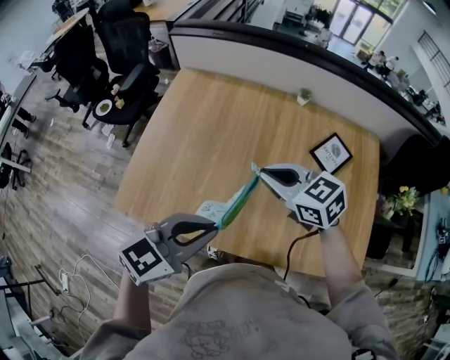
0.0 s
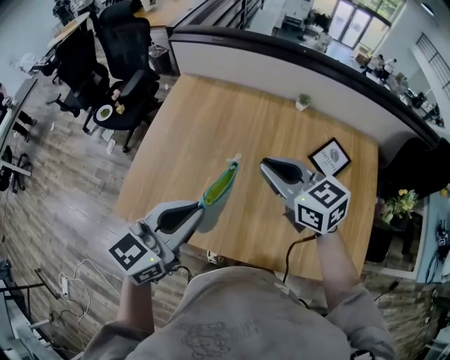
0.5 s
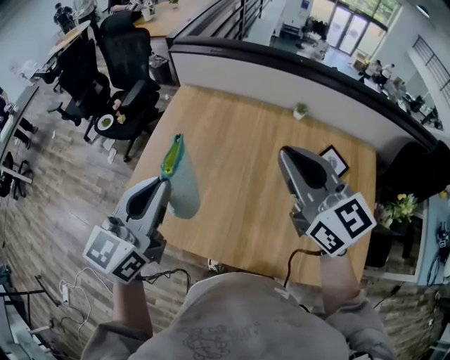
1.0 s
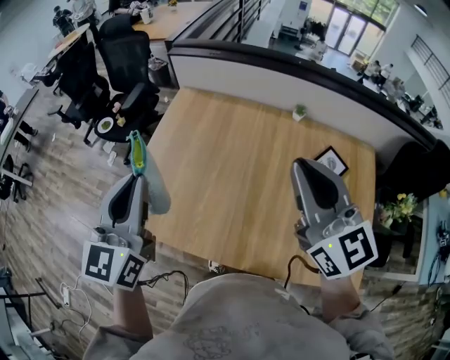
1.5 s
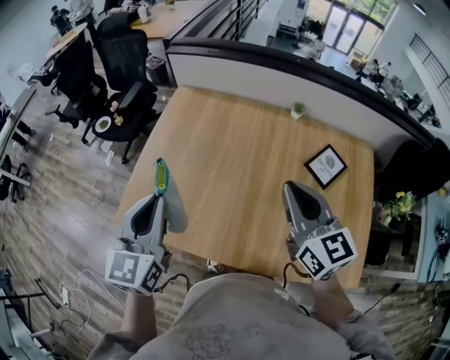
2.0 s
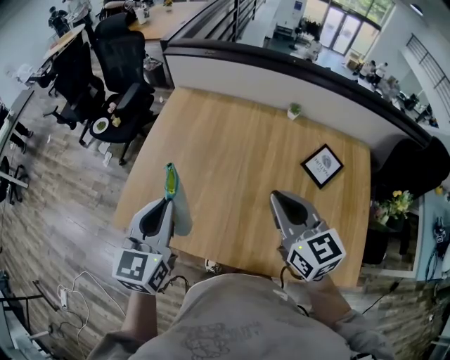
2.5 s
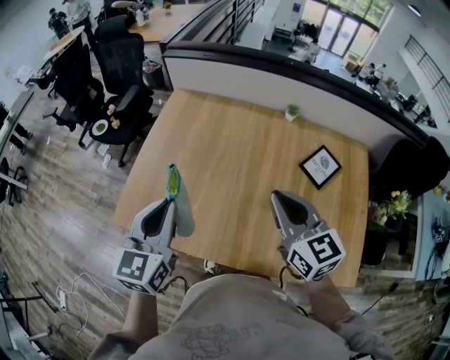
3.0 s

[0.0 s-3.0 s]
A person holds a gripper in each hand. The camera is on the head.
0.0 to 1.5 s: The right gripper goes some 20 cm upward, and tips its fingers upward by some 30 degrees; the left gripper is displaced upward, to the left and forward by about 20 cm, and swivels roughly 50 degrees.
1.5 to 3.0 s: The two grippers go roughly 10 cm downward.

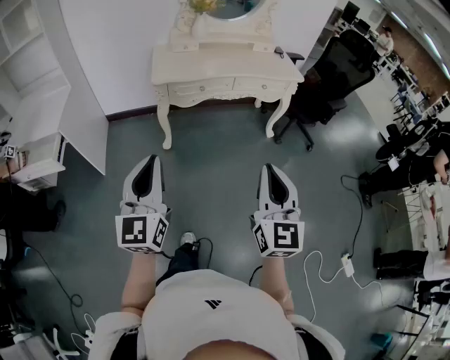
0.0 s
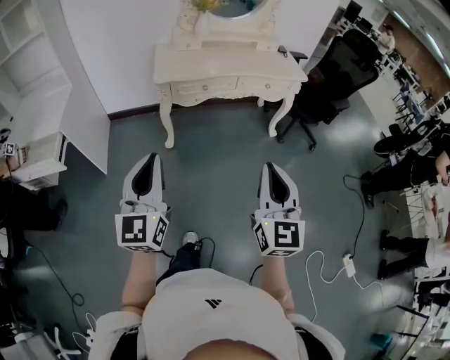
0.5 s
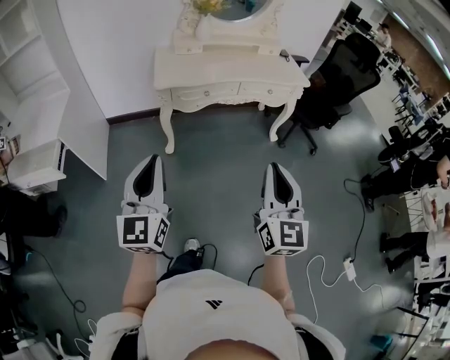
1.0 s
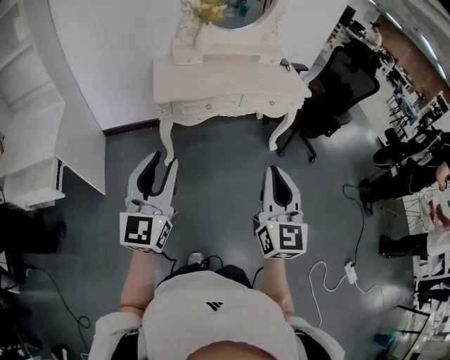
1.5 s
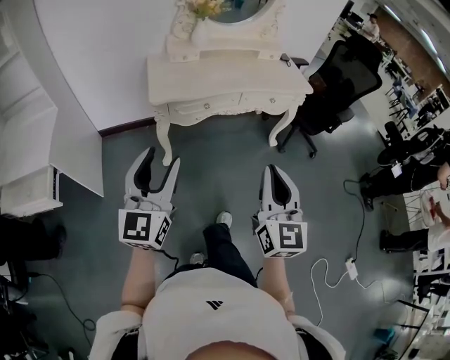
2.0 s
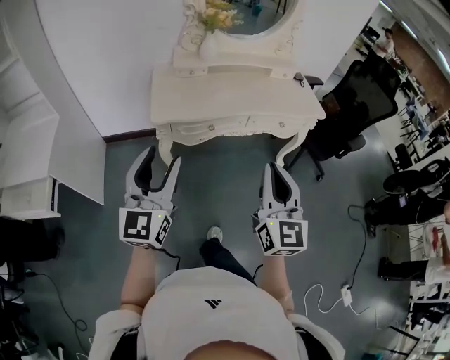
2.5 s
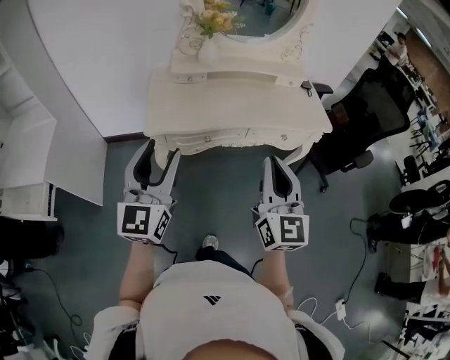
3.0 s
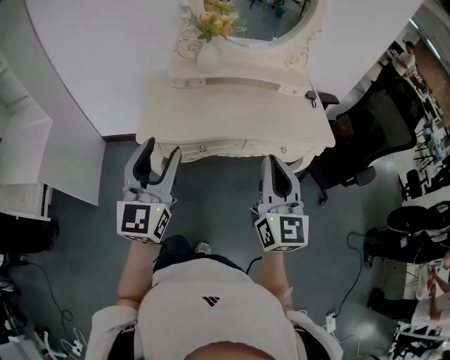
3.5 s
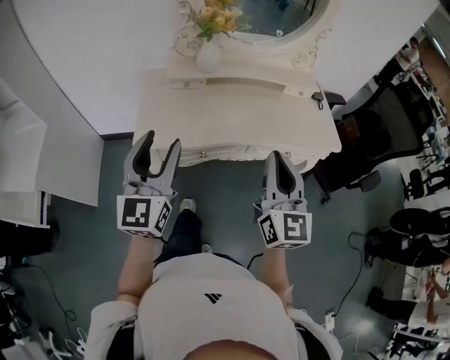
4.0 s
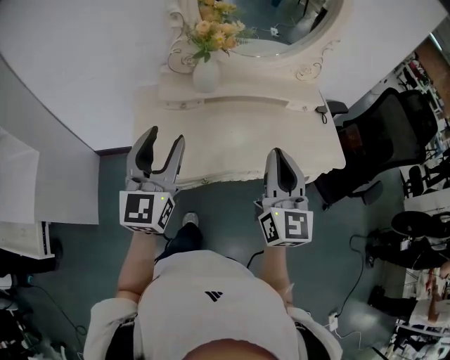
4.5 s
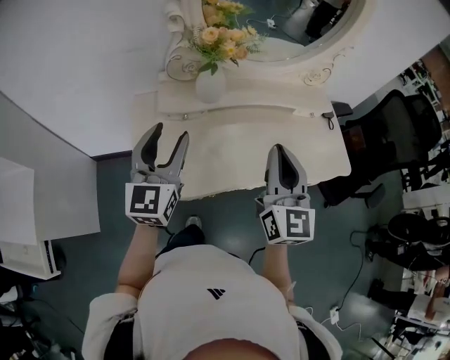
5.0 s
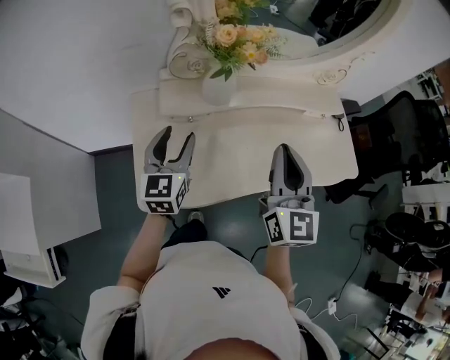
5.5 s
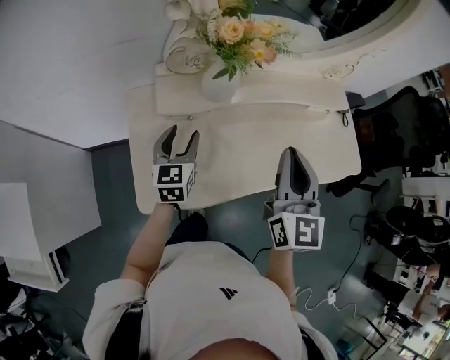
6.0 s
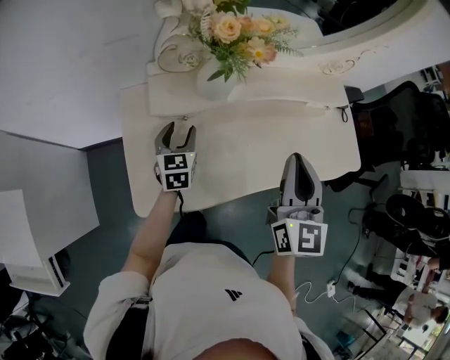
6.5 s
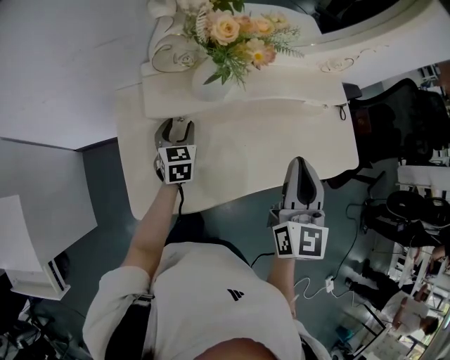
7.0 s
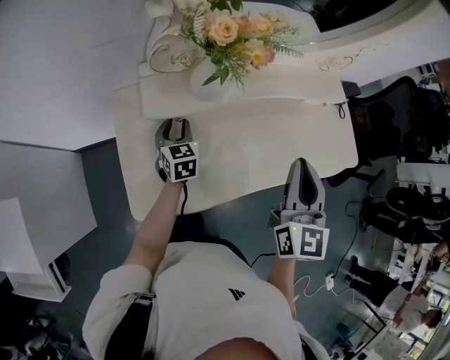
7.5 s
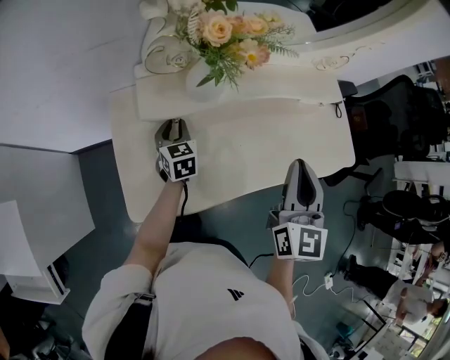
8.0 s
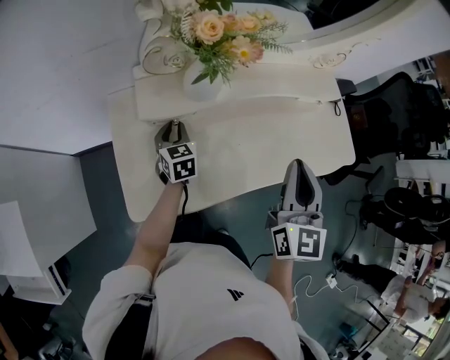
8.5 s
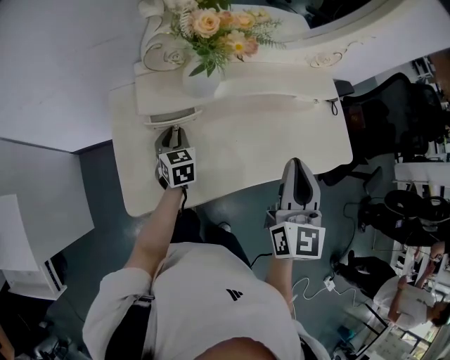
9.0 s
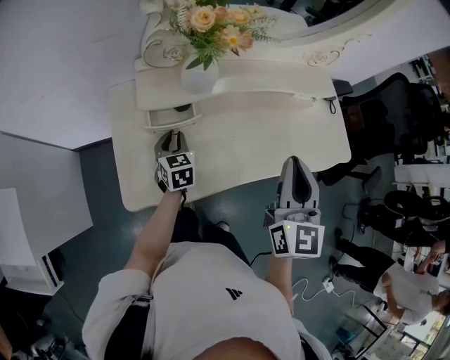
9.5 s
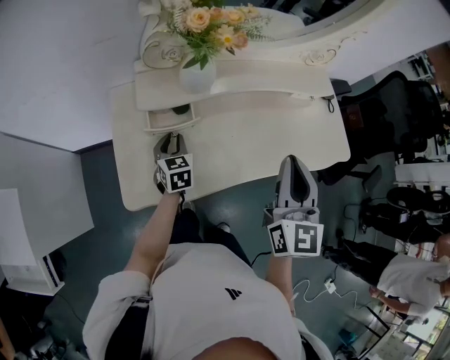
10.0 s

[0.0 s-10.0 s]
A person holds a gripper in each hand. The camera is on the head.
0.0 to 2.0 s: The right gripper goes some 20 cm forward and to the left. Meanwhile the left gripper moves forward, about 20 cm, and opens its fingers.
2.0 to 4.0 s: Both grippers travel together forward, roughly 35 cm.
4.0 to 6.0 s: The left gripper shifts approximately 40 cm forward and downward, and changes its angle by approximately 30 degrees. The right gripper is displaced forward by roughly 25 cm.
6.0 to 8.0 s: The left gripper travels downward and forward by roughly 10 cm, and closes up.
8.0 to 10.0 s: The left gripper heads backward, covering roughly 10 cm.

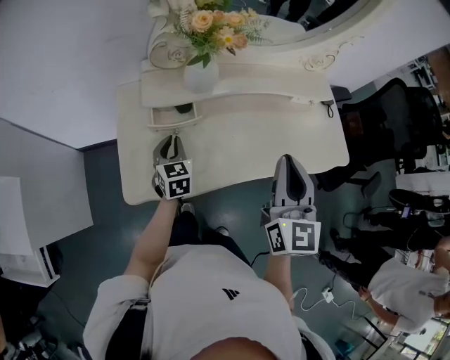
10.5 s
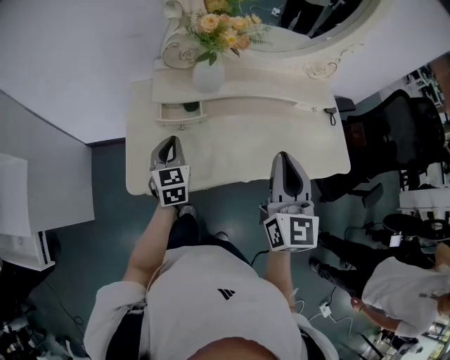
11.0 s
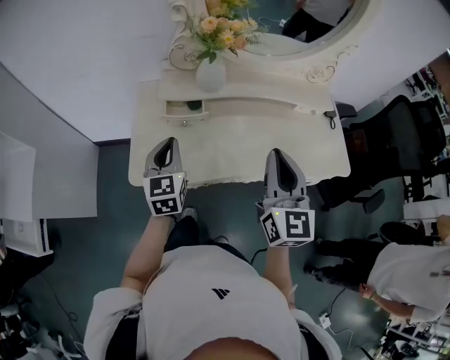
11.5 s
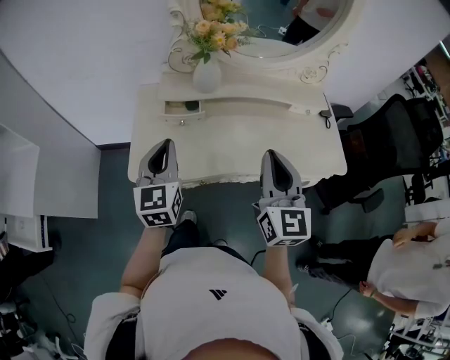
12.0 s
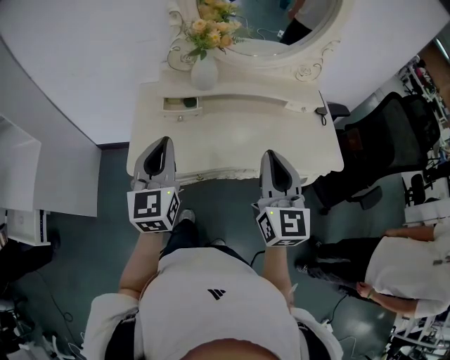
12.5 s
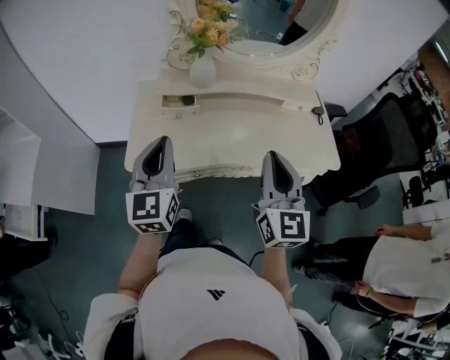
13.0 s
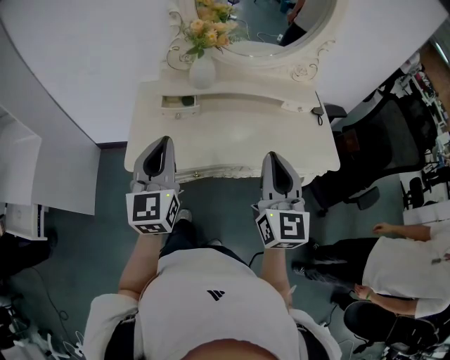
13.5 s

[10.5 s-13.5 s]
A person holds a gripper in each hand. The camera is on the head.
10.5 to 12.0 s: The left gripper goes some 25 cm upward and backward, and rotates about 20 degrees, while the right gripper travels backward by some 5 cm.
12.0 to 13.5 s: The left gripper travels backward and upward by approximately 10 cm; the right gripper goes roughly 5 cm backward.

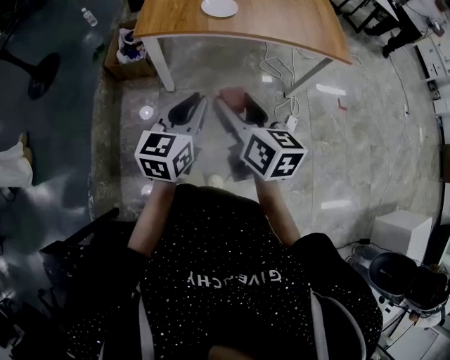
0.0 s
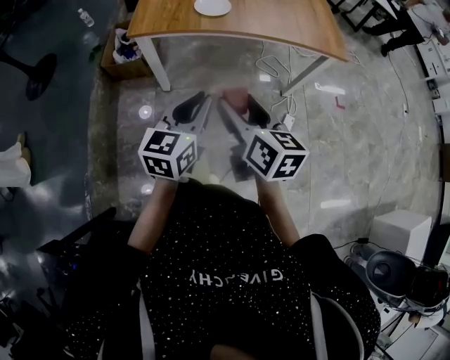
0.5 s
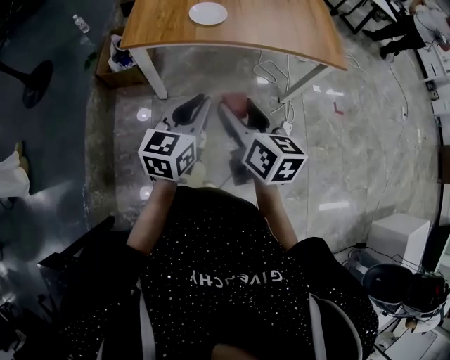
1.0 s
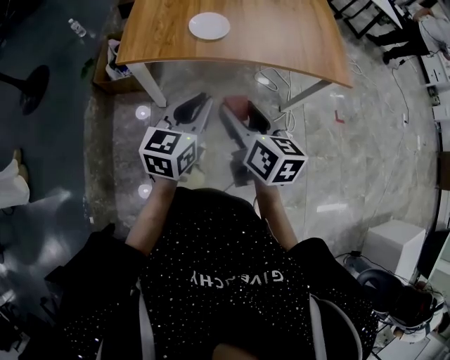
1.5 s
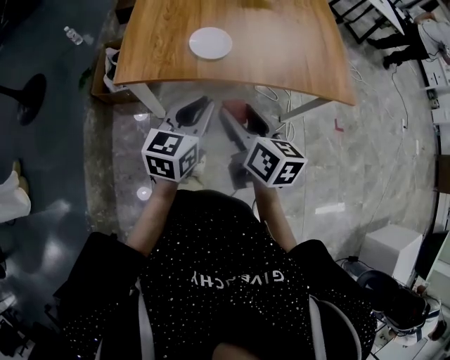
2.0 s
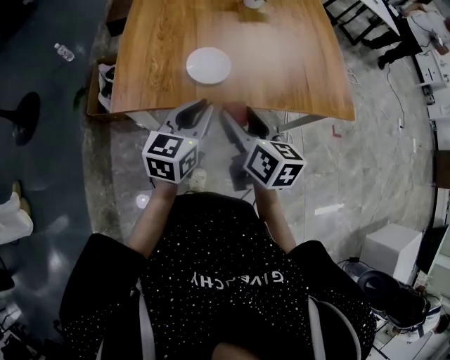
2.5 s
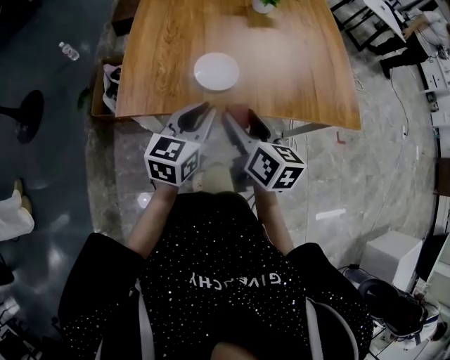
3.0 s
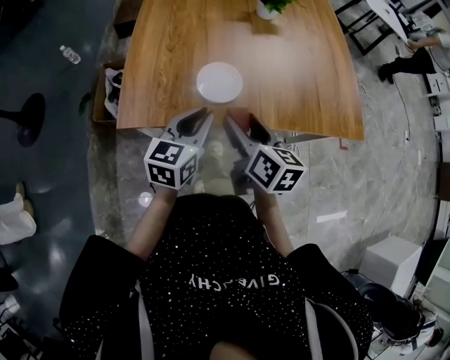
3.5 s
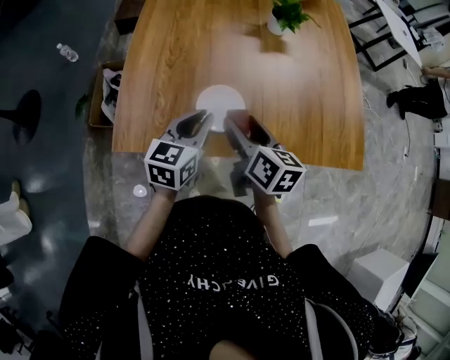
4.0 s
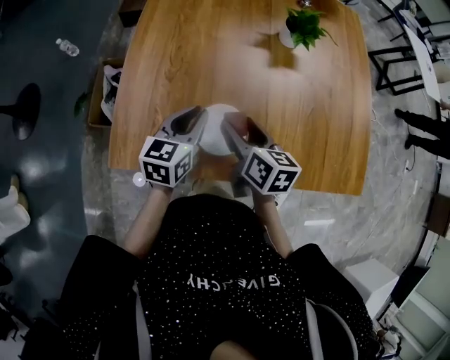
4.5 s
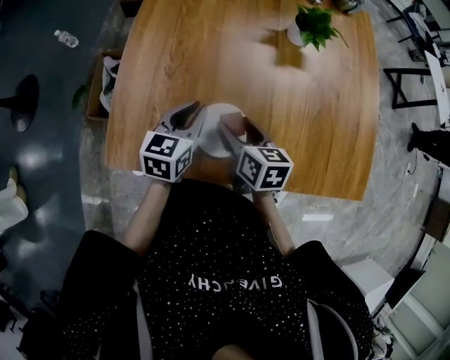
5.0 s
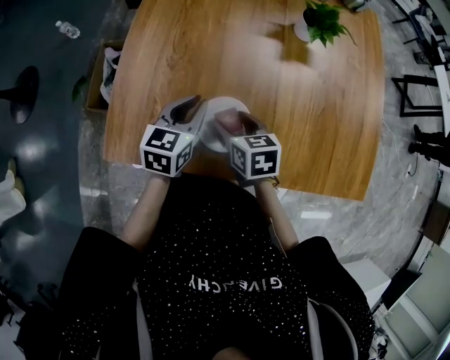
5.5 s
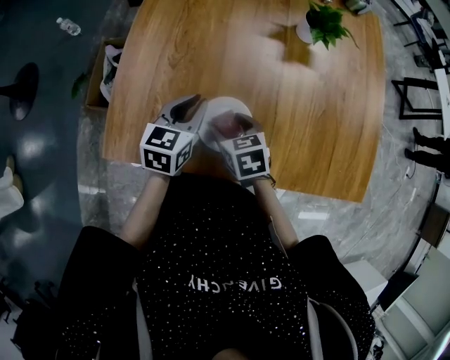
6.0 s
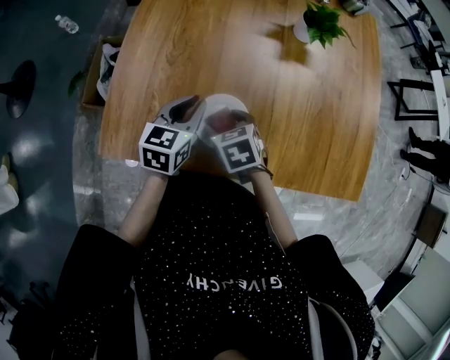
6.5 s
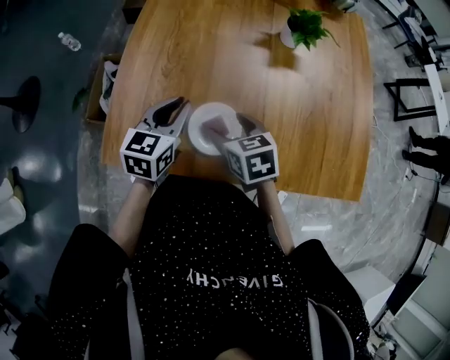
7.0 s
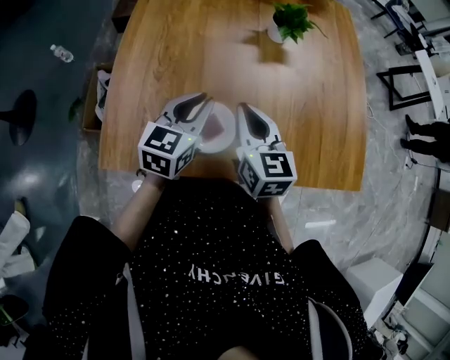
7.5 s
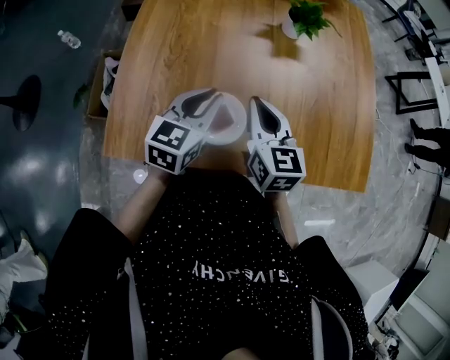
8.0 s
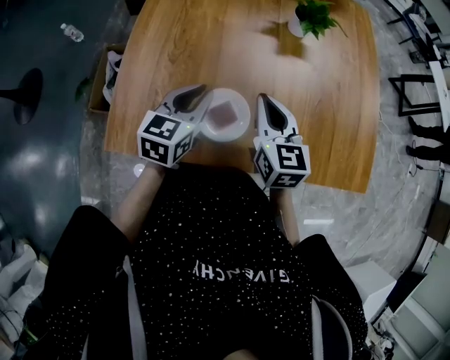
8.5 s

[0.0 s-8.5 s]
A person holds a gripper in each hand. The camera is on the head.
0.0 to 2.0 s: Both grippers move forward, roughly 25 cm.
2.0 to 4.0 s: The two grippers go some 25 cm forward.
4.0 to 6.5 s: The left gripper moves forward and downward, approximately 10 cm, while the right gripper is displaced downward and forward by about 15 cm, and points its fingers approximately 40 degrees further downward.
6.5 to 8.5 s: The right gripper goes some 15 cm upward and to the right, tilts its fingers some 40 degrees upward, and closes up. Meanwhile the left gripper goes approximately 5 cm upward.

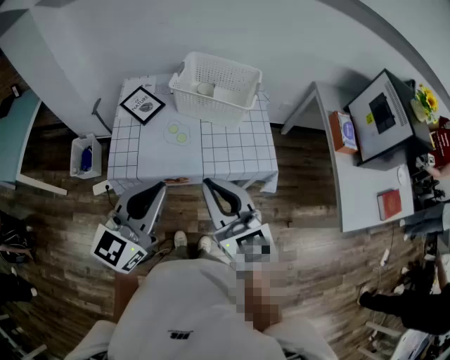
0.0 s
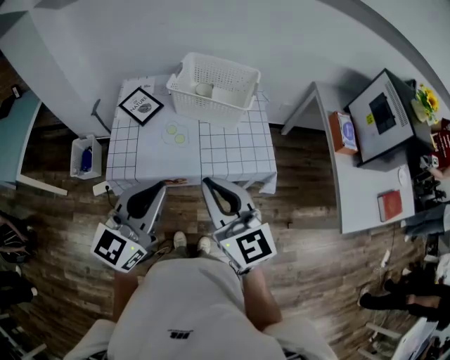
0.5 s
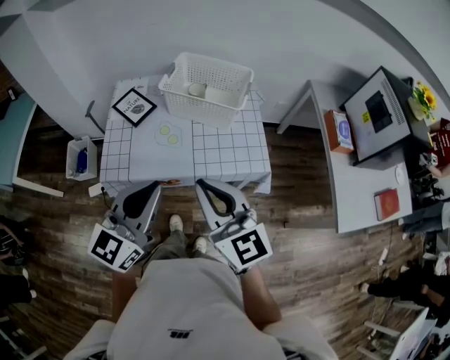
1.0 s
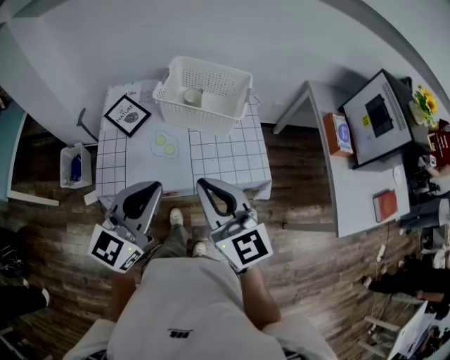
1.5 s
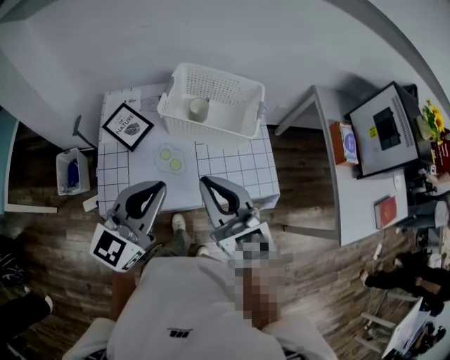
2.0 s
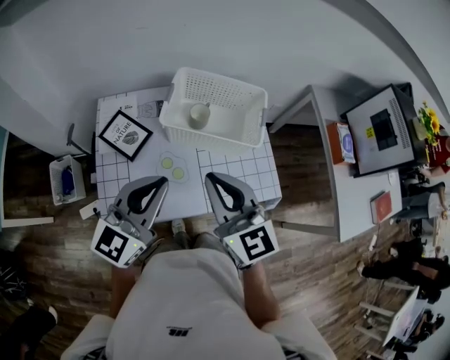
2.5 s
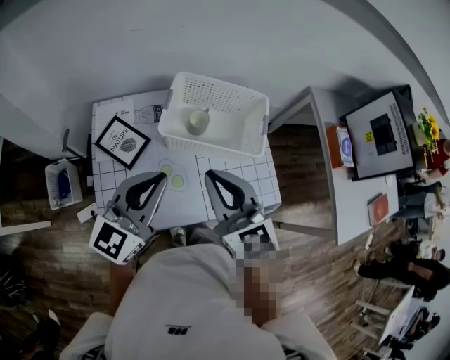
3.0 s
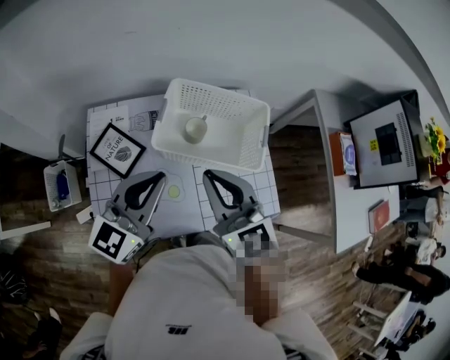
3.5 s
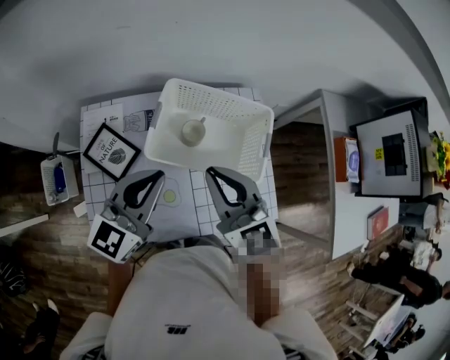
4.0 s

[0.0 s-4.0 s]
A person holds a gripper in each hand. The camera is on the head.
0.0 to 2.0 s: Both grippers move forward, about 15 cm.
2.0 to 4.0 s: The grippers both shift forward by approximately 20 cm.
